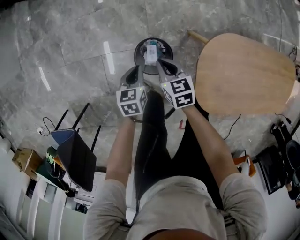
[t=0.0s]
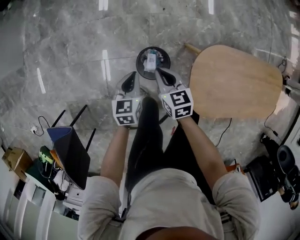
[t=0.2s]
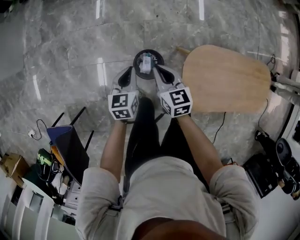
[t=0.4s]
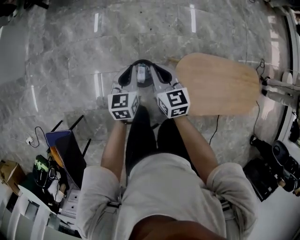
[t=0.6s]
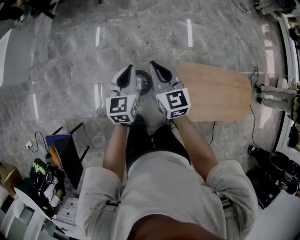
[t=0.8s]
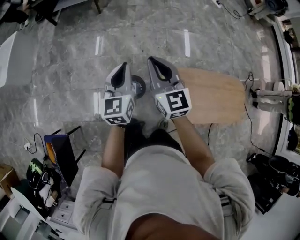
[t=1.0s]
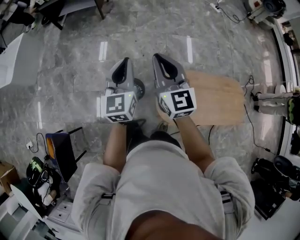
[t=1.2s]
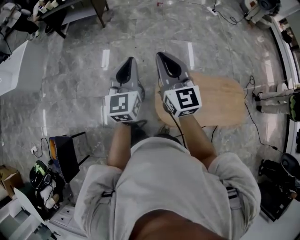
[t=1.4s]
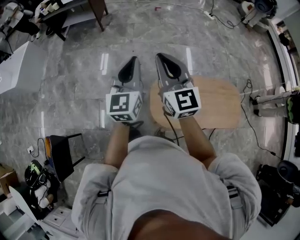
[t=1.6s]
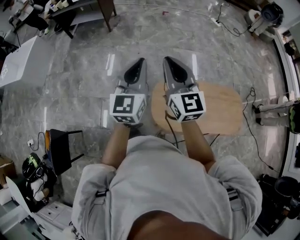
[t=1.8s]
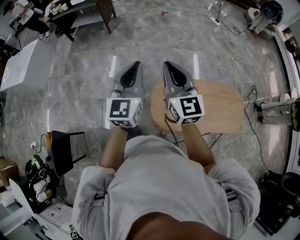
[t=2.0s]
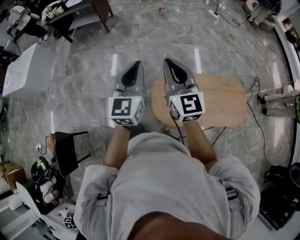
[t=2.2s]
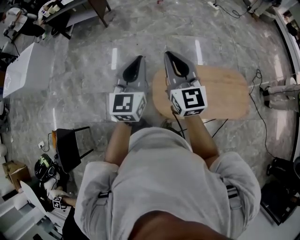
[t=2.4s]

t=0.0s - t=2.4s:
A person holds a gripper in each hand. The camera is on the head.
t=0.0s - t=1.2s: Both grippers travel together upward, about 60 cm. The right gripper angles its fingers upward, by about 40 degrees; the left gripper tilts its fingers approximately 50 degrees upward.
t=1.2s - t=2.4s: Both grippers move to the right and backward, roughly 20 cm.

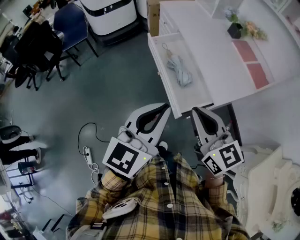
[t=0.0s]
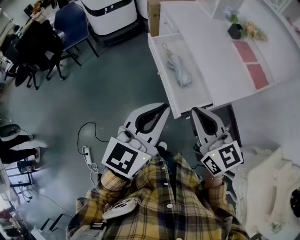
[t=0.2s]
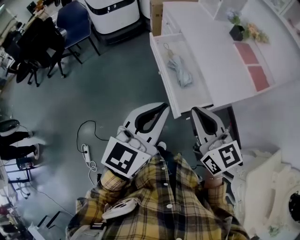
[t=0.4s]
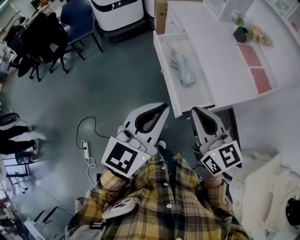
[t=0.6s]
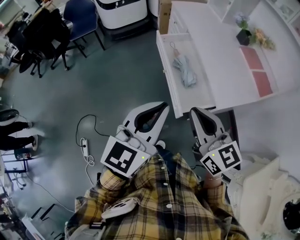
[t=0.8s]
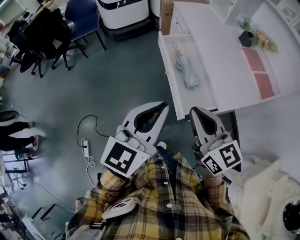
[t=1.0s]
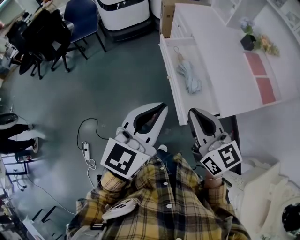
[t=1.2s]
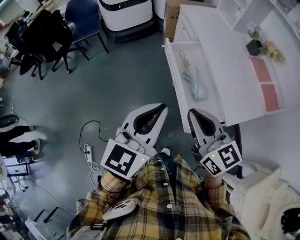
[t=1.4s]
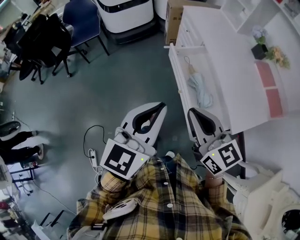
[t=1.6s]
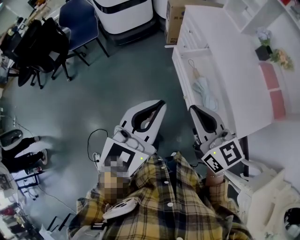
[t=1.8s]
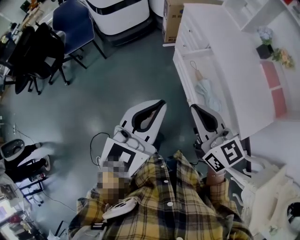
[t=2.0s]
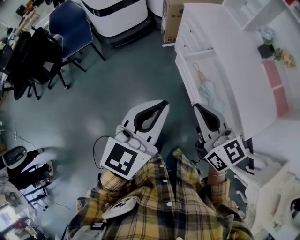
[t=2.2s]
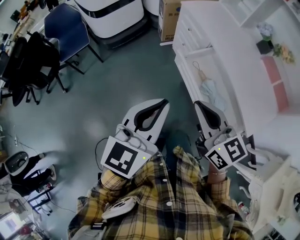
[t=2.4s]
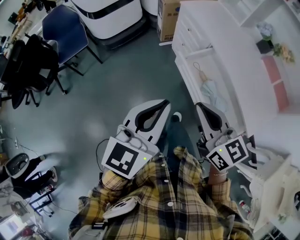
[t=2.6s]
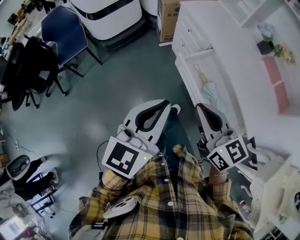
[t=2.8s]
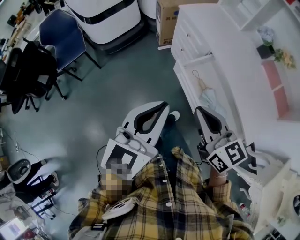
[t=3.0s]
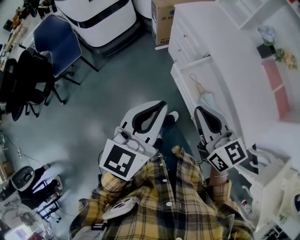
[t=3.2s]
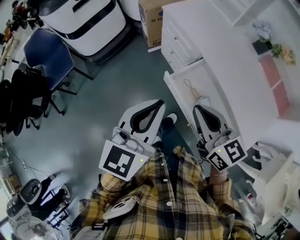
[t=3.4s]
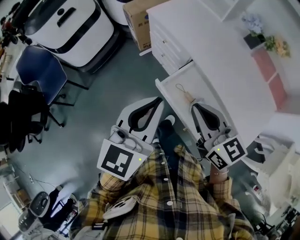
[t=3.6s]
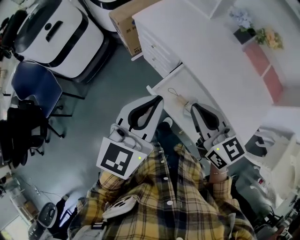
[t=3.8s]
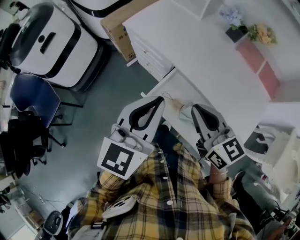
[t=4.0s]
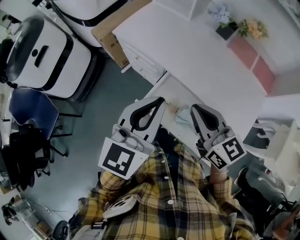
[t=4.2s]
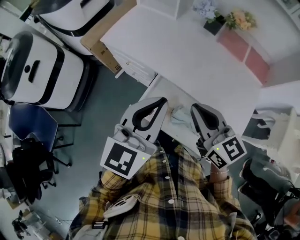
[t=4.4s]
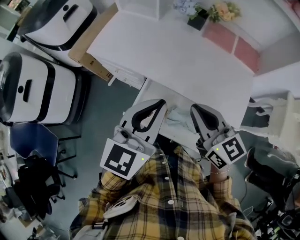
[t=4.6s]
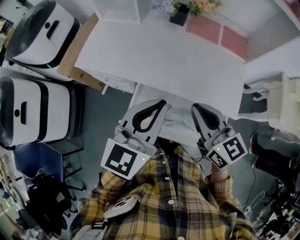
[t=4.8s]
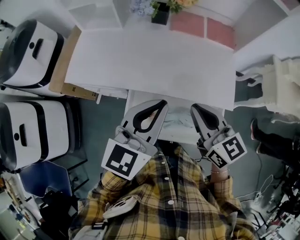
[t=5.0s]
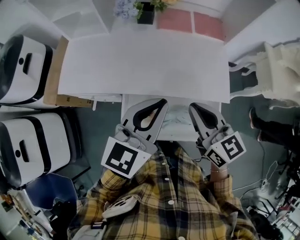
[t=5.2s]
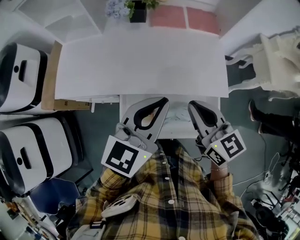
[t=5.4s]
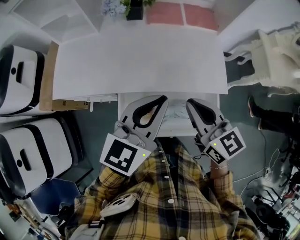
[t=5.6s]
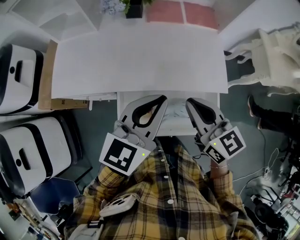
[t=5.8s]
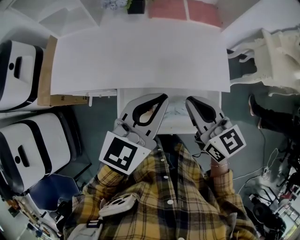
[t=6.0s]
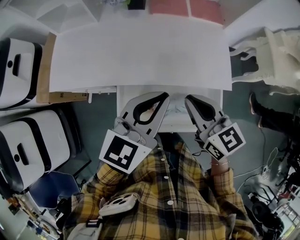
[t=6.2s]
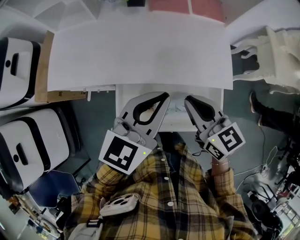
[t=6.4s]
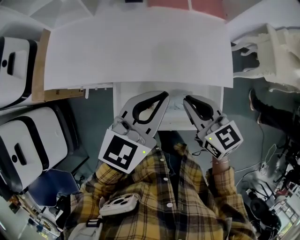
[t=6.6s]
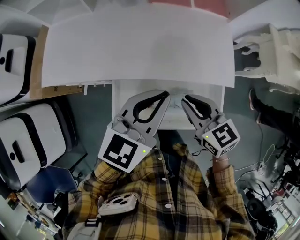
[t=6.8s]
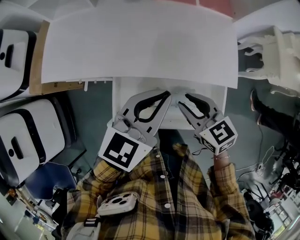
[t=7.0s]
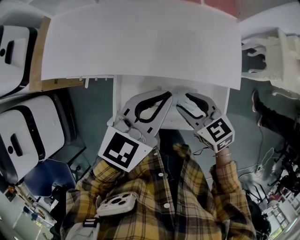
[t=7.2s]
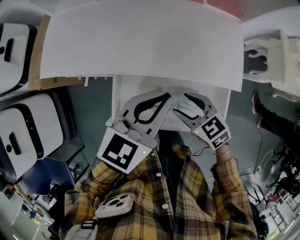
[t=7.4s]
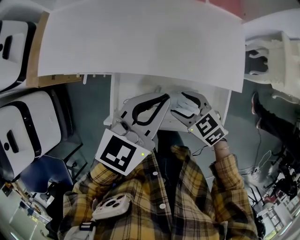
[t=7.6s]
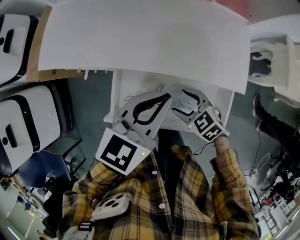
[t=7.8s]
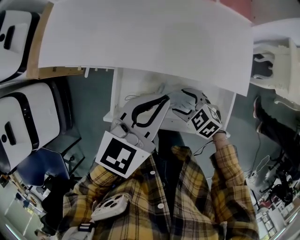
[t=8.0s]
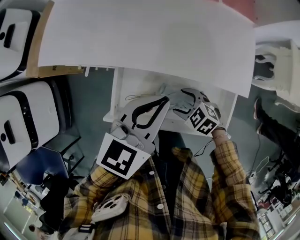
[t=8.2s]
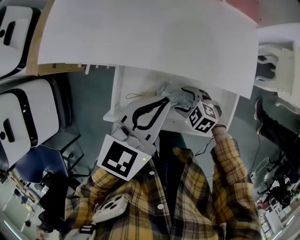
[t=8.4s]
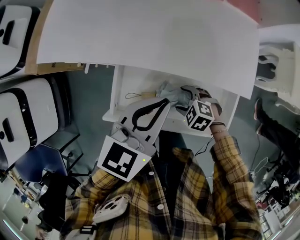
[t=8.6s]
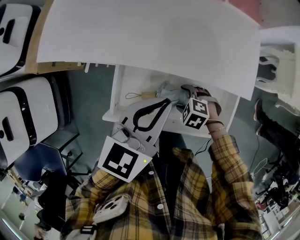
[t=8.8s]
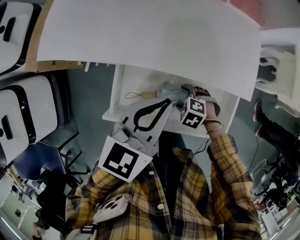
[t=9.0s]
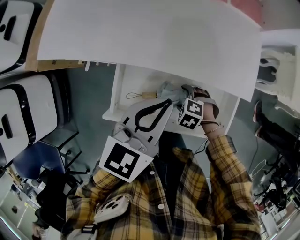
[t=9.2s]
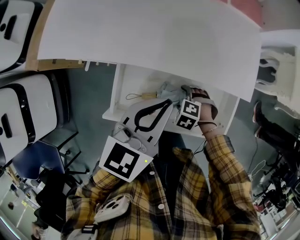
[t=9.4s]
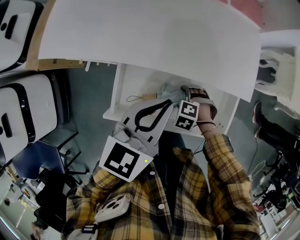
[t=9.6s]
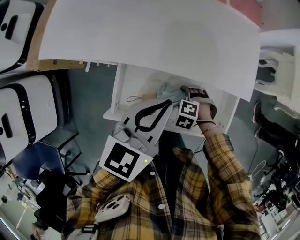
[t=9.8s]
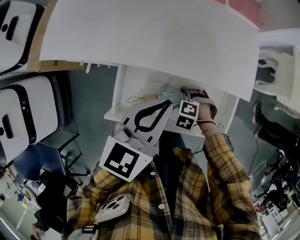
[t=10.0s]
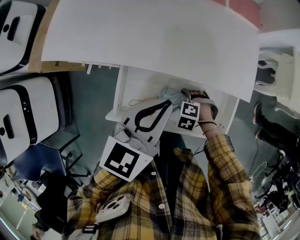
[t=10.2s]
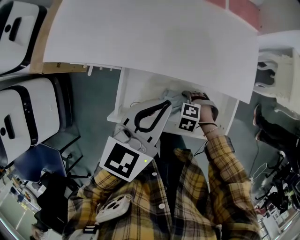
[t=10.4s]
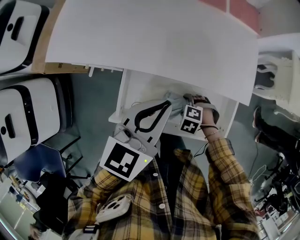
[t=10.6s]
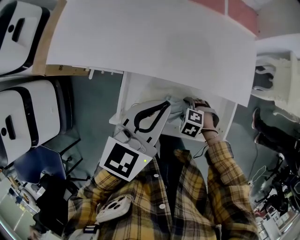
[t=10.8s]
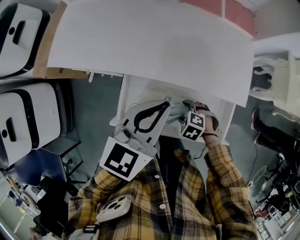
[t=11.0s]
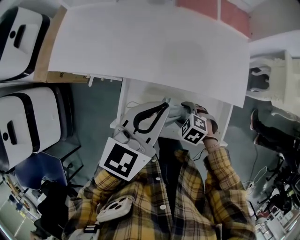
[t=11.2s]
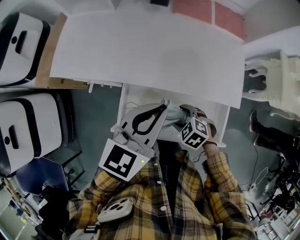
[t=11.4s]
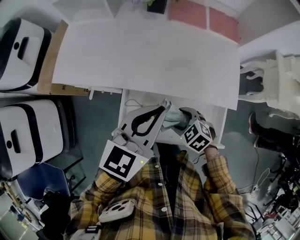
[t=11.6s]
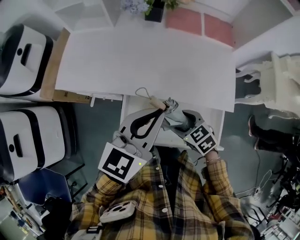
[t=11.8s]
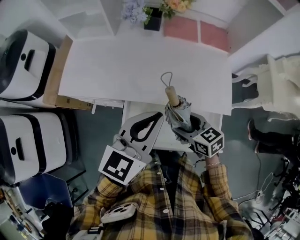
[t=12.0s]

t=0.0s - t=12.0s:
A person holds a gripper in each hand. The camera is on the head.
t=0.0s - t=1.6s: The grippers both shift forward and to the left by approximately 15 cm.
t=1.6s - t=3.0s: The grippers both shift forward and to the left by about 20 cm.
t=3.0s - t=4.4s: The right gripper ends up about 25 cm from where it was, and rotates about 30 degrees. Meanwhile the left gripper changes place by some 25 cm, and turns by about 30 degrees.
t=4.4s - t=6.0s: The left gripper shifts by some 15 cm, and rotates about 40 degrees, while the right gripper ends up approximately 10 cm from where it was, and swivels about 30 degrees.
t=6.0s - t=7.6s: The left gripper is displaced downward by about 10 cm; the right gripper shifts roughly 20 cm downward, tilts its fingers approximately 30 degrees downward, and opens up.
t=7.6s - t=9.0s: The right gripper heads downward, covering some 15 cm, and swivels roughly 40 degrees.
t=9.0s - t=10.4s: The grippers stay close to where they were, moving slightly.
t=10.4s - t=12.0s: The left gripper heads upward, covering some 10 cm; the right gripper goes some 25 cm upward, and tilts its fingers some 50 degrees upward.

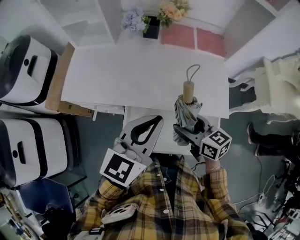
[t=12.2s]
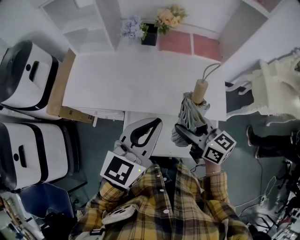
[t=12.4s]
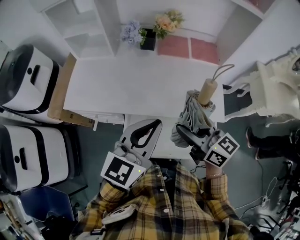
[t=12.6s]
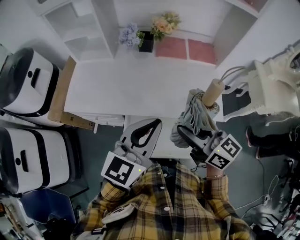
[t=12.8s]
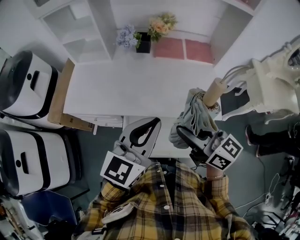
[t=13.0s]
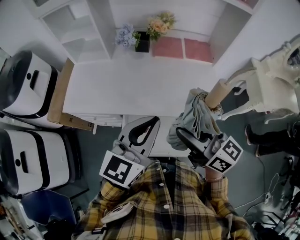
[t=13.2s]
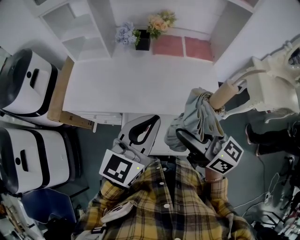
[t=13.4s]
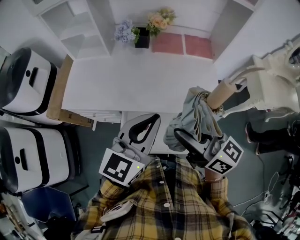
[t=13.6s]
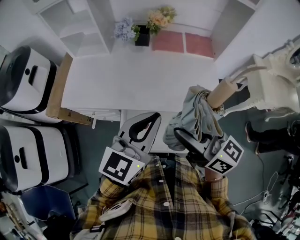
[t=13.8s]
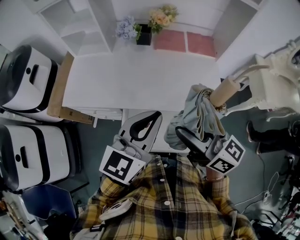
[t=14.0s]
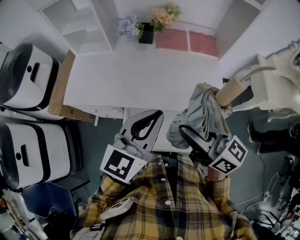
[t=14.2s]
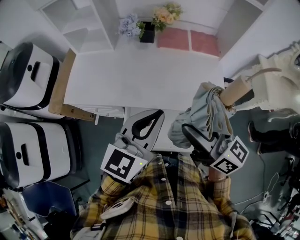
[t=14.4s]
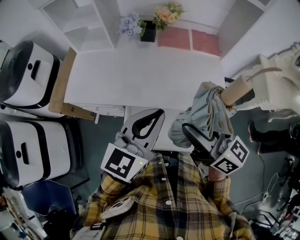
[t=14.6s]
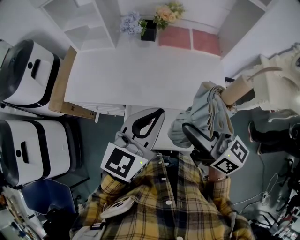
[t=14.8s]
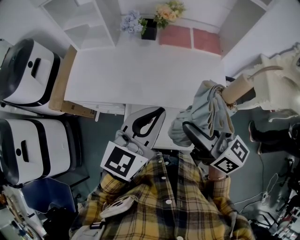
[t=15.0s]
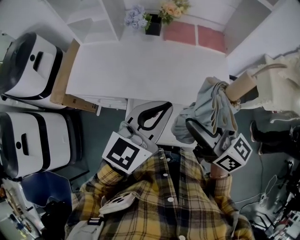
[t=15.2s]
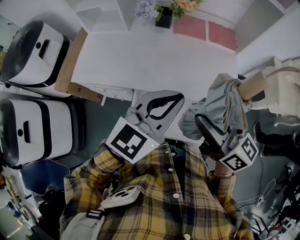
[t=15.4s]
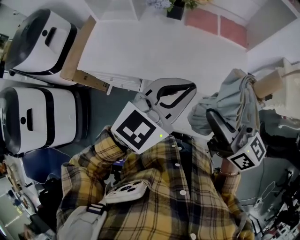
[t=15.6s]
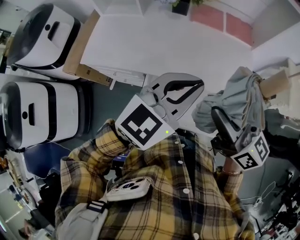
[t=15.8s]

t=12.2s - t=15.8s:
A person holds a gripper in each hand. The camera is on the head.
t=12.2s - t=14.0s: The right gripper travels upward by some 15 cm, and changes its angle by about 30 degrees.
t=14.0s - t=15.8s: There are only small adjustments of the grippers.

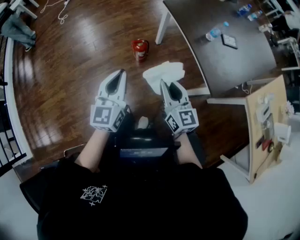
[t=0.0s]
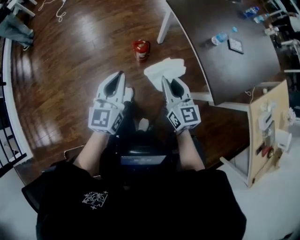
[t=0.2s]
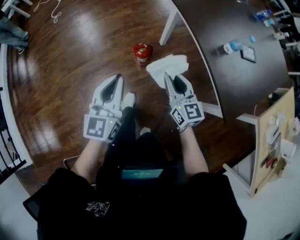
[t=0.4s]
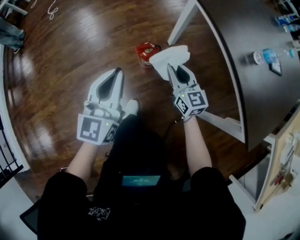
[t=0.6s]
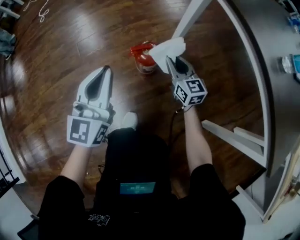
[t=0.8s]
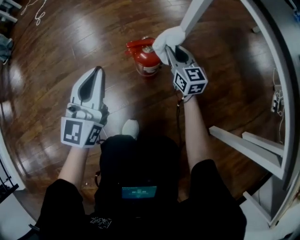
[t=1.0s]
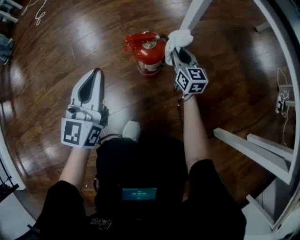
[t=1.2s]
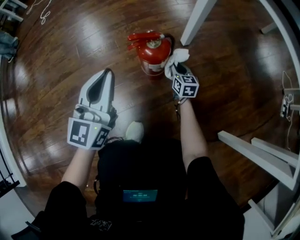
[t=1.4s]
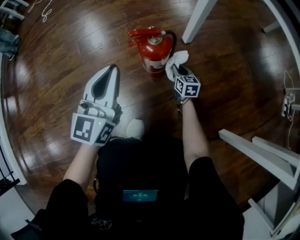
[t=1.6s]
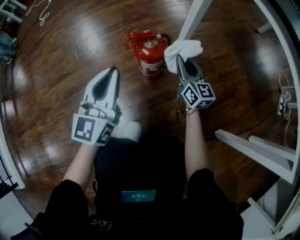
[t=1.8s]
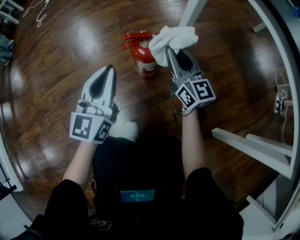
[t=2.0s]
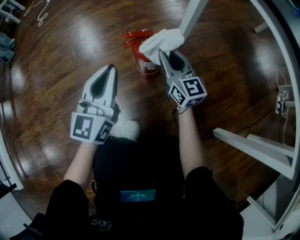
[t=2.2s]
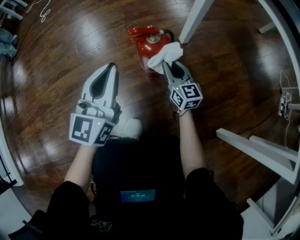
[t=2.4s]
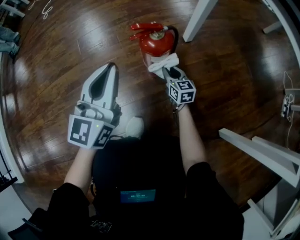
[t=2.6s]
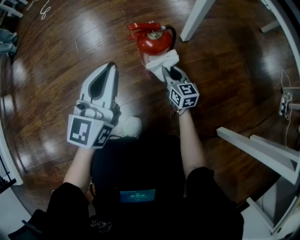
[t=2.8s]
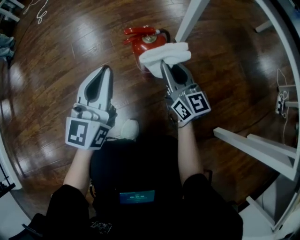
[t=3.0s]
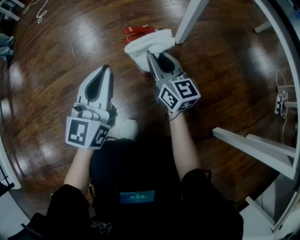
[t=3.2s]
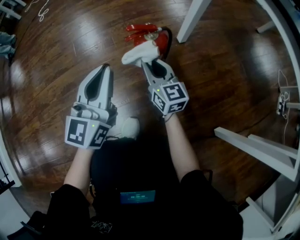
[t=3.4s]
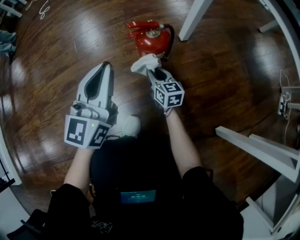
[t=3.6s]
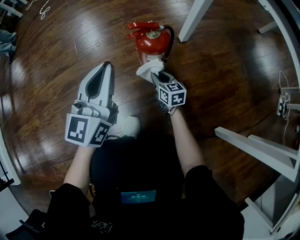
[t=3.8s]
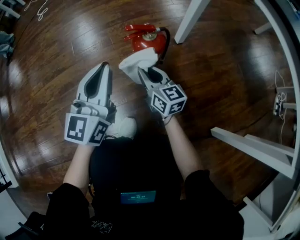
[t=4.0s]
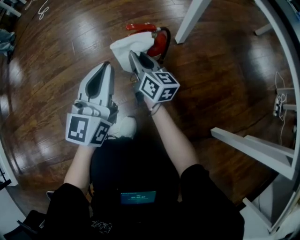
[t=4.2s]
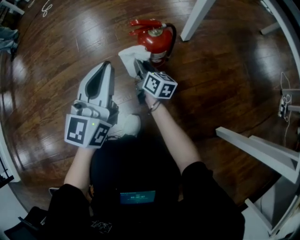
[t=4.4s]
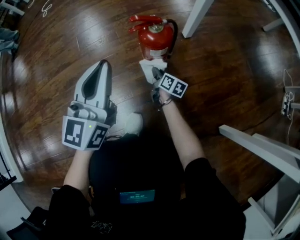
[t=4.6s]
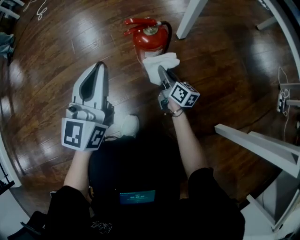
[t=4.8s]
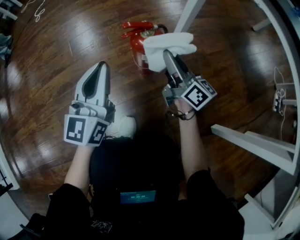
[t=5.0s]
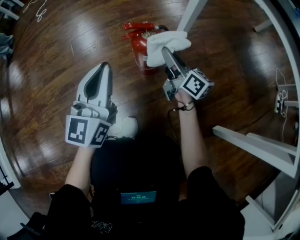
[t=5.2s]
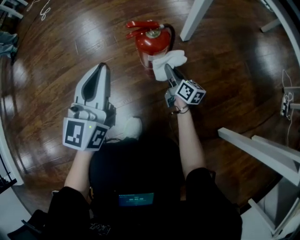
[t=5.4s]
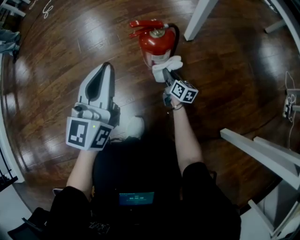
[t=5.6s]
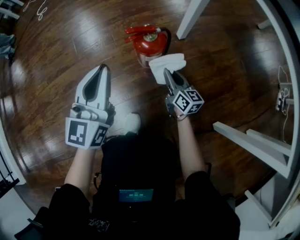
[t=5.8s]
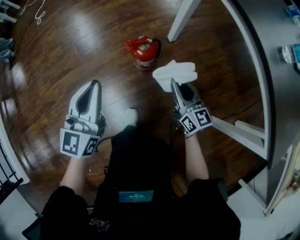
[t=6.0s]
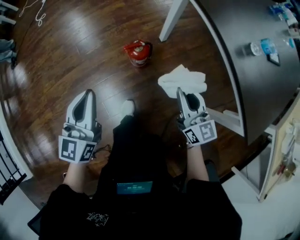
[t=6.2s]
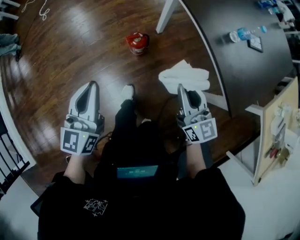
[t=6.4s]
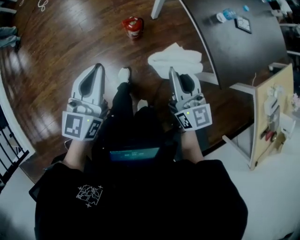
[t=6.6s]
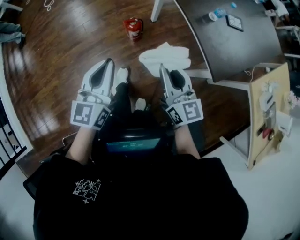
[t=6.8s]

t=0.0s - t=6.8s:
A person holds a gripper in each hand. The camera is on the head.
t=0.0s - t=1.4s: The two grippers go roughly 80 cm downward and forward.
t=1.4s - t=2.8s: The right gripper moves up and down over approximately 30 cm, changing direction 2 times.
t=2.8s - t=4.0s: The right gripper goes up and down, approximately 20 cm each way, reversing 2 times.
t=4.0s - t=5.4s: The right gripper moves up and down over approximately 30 cm, changing direction 2 times, and changes its angle by about 30 degrees.
t=5.4s - t=6.8s: Both grippers travel together upward and backward, approximately 70 cm. The right gripper turns by approximately 30 degrees.
